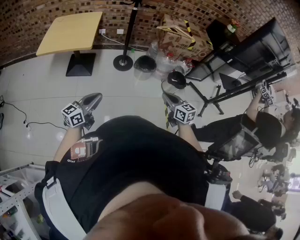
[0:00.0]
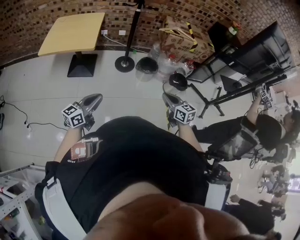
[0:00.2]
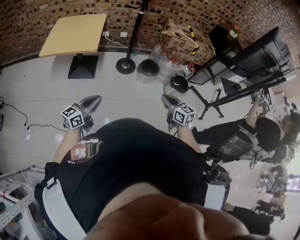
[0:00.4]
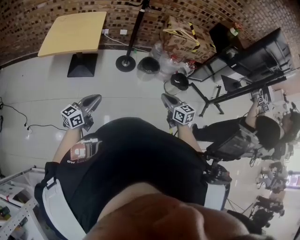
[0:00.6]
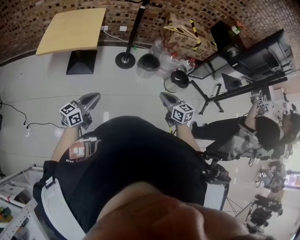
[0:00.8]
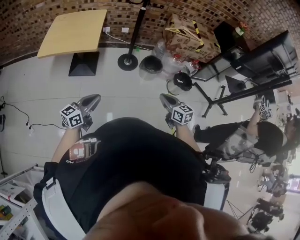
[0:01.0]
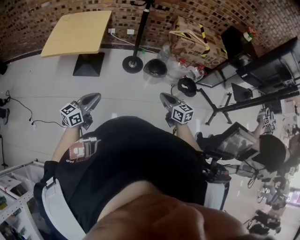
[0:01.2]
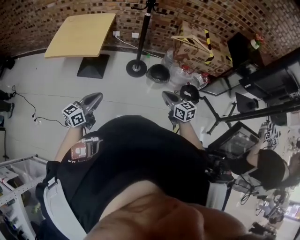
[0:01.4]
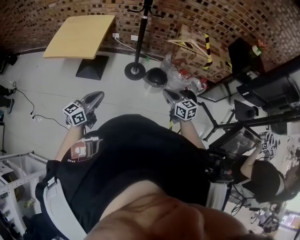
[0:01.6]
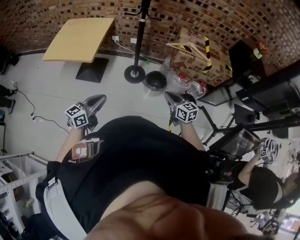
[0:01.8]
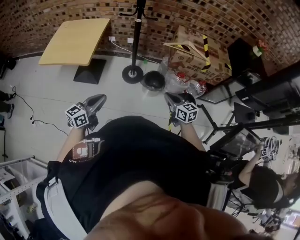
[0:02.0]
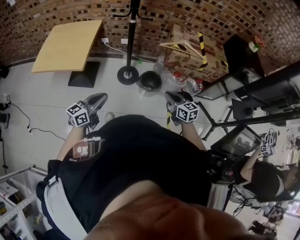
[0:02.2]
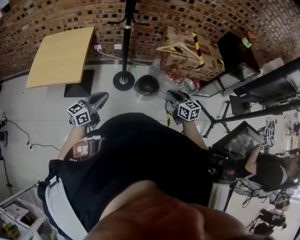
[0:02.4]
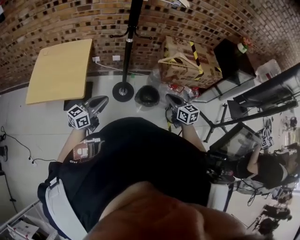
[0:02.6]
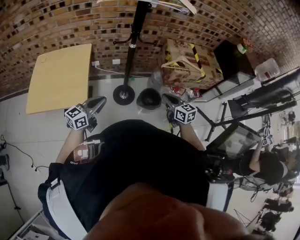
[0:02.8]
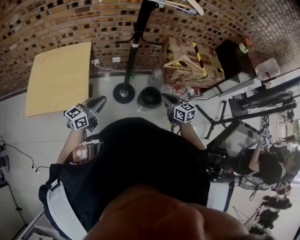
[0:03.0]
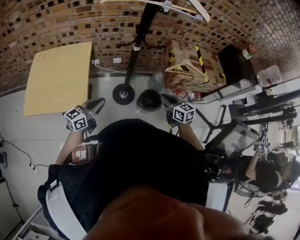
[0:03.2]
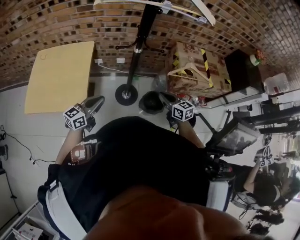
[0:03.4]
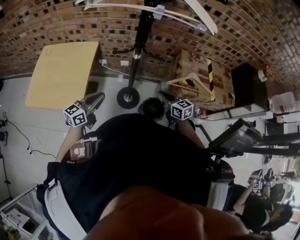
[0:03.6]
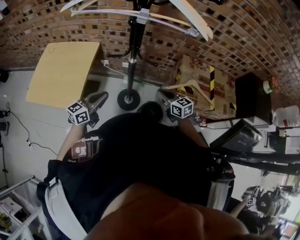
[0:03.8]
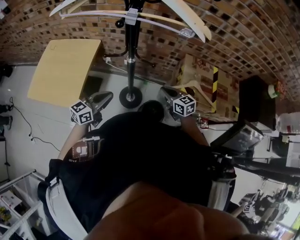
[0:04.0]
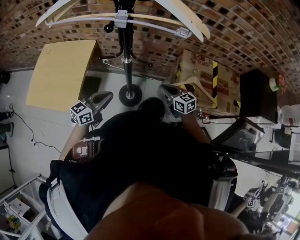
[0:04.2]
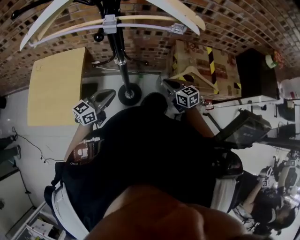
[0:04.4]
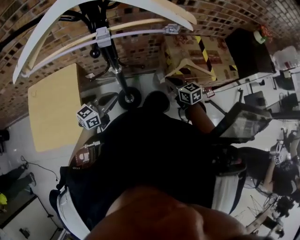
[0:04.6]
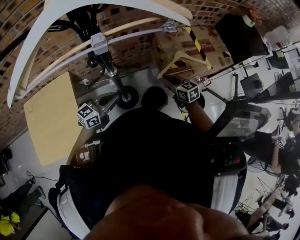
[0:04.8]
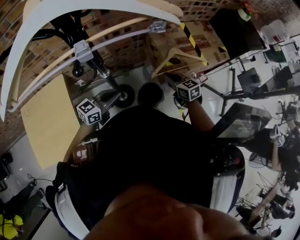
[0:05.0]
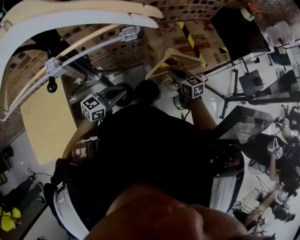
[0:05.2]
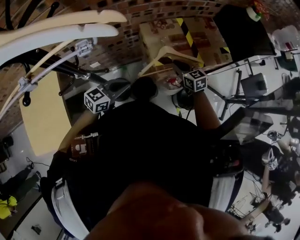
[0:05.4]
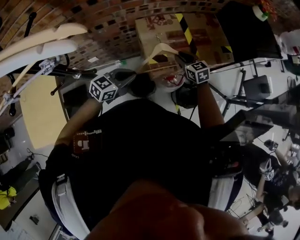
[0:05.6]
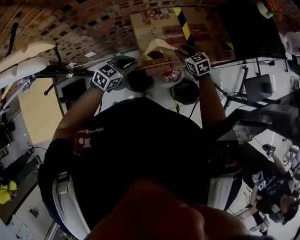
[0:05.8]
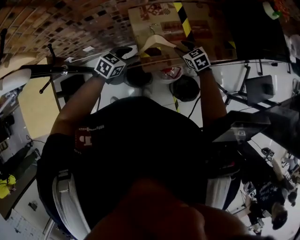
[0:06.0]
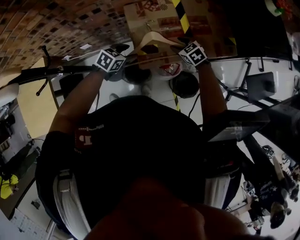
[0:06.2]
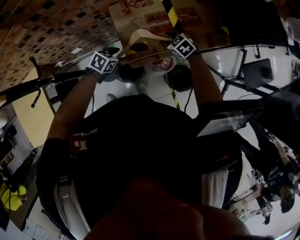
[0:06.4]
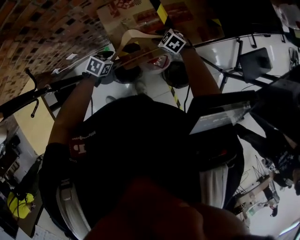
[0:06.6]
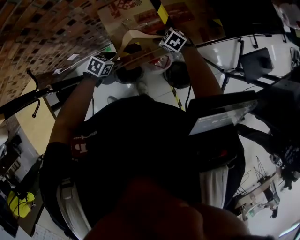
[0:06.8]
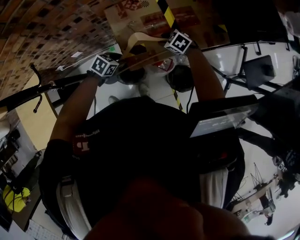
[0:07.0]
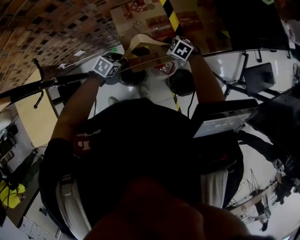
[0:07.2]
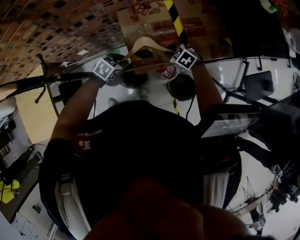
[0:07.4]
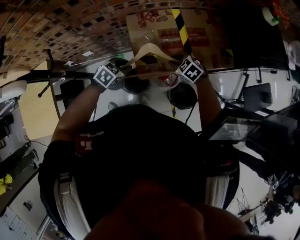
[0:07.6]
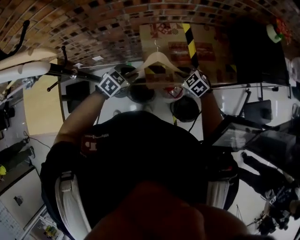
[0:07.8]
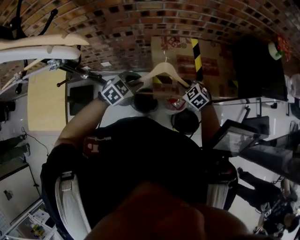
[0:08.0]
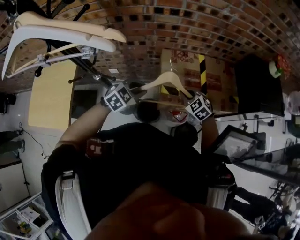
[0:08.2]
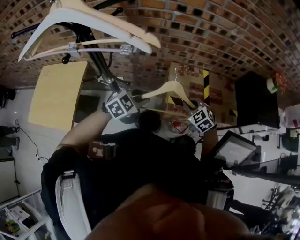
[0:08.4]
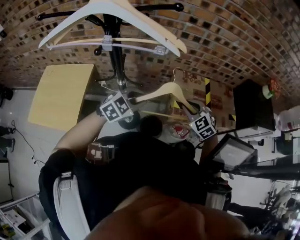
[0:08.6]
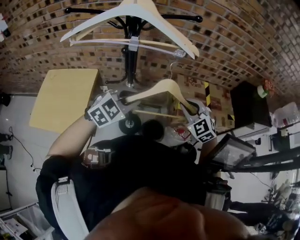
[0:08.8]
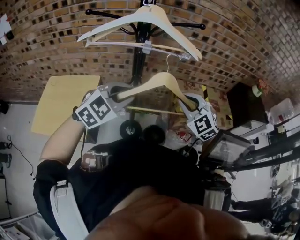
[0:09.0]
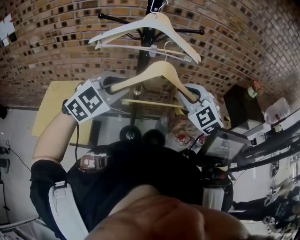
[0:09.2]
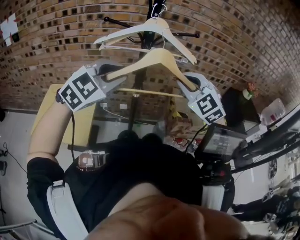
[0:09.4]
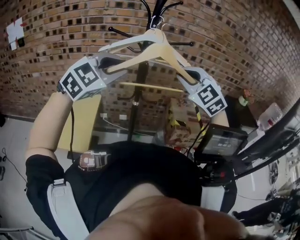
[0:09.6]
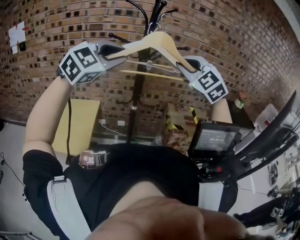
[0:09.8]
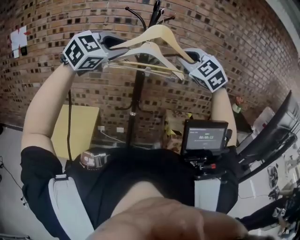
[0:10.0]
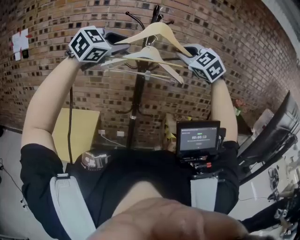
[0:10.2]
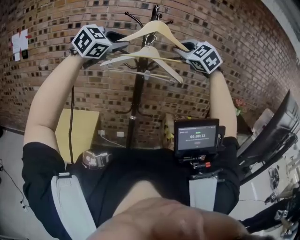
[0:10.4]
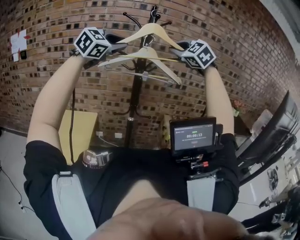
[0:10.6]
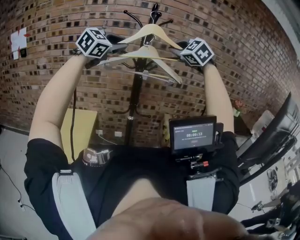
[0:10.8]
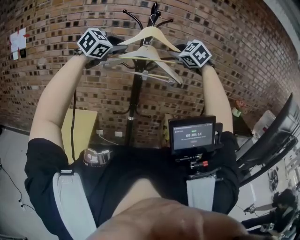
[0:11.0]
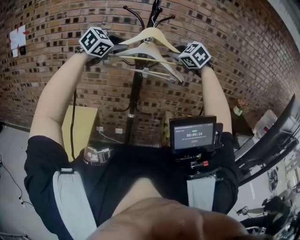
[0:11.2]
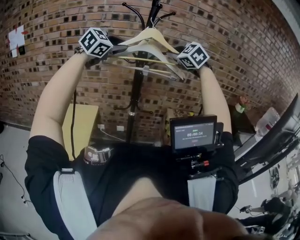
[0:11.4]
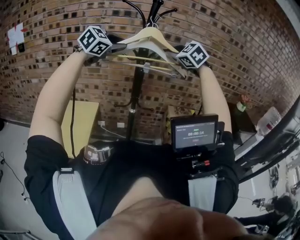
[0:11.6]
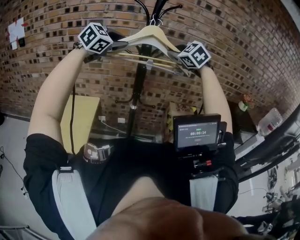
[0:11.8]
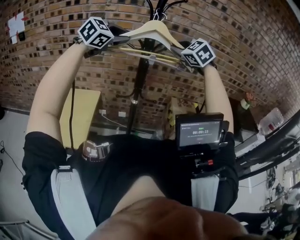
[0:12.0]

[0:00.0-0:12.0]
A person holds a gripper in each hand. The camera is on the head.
0:00.0 to 0:01.6: The left gripper travels forward and to the right by roughly 20 cm; the right gripper moves forward, some 25 cm.
0:01.6 to 0:03.0: The left gripper heads forward, covering about 35 cm, while the right gripper goes about 25 cm forward and to the left.
0:03.0 to 0:04.4: The left gripper goes some 25 cm forward and to the right; the right gripper moves forward, roughly 25 cm.
0:04.4 to 0:06.0: The left gripper moves about 40 cm, tips its fingers downward by approximately 30 degrees, and opens its fingers. Meanwhile the right gripper shifts by approximately 35 cm, turns by approximately 20 degrees, and opens.
0:06.0 to 0:07.6: The right gripper rotates some 20 degrees, and closes its fingers; the left gripper moves some 10 cm downward and comes back, and opens and closes again.
0:07.6 to 0:09.0: The grippers both shift upward, to the left and backward by some 50 cm. The left gripper tips its fingers upward by some 30 degrees. Meanwhile the right gripper tilts its fingers approximately 30 degrees upward.
0:09.0 to 0:10.4: Both grippers move upward, about 30 cm. The left gripper changes its angle by about 20 degrees.
0:10.4 to 0:12.0: Both grippers travel together forward and downward, about 15 cm.

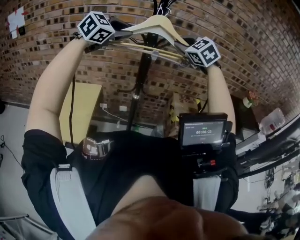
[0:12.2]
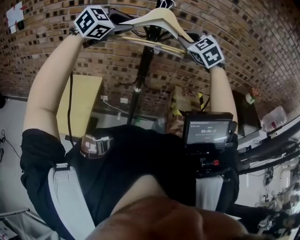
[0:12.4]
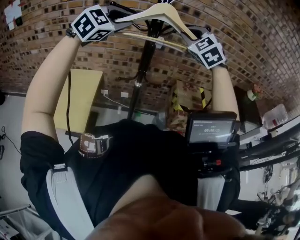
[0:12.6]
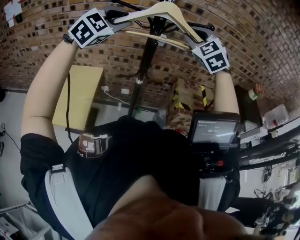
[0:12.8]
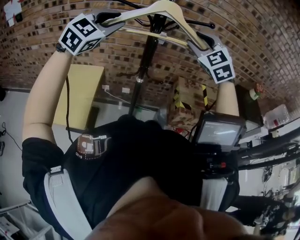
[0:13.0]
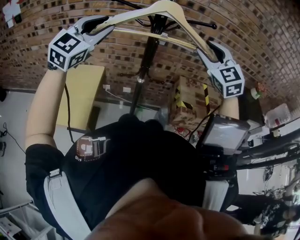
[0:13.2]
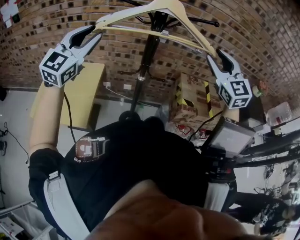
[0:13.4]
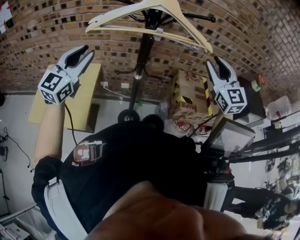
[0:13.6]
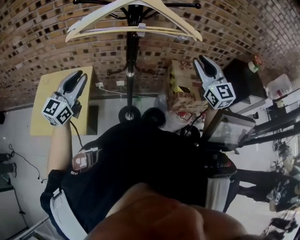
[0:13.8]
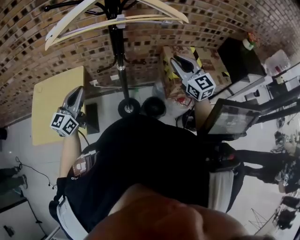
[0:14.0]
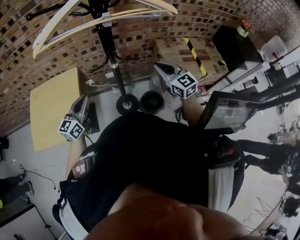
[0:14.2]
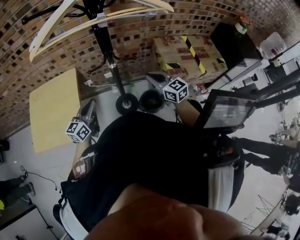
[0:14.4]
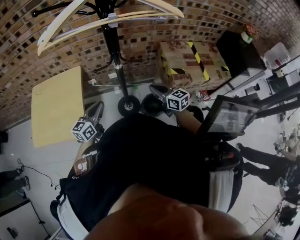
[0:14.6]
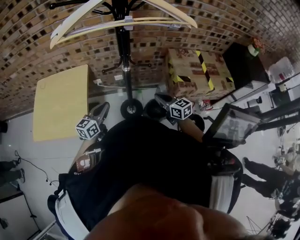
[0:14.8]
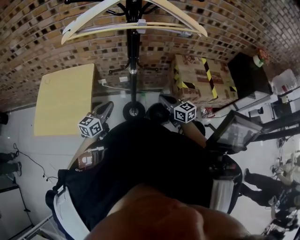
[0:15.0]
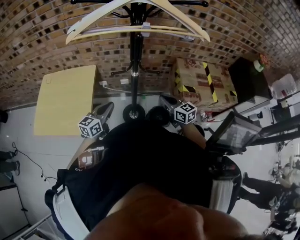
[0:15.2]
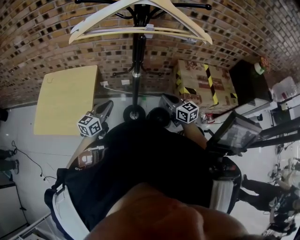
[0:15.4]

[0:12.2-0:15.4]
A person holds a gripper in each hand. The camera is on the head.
0:12.2 to 0:13.8: The right gripper moves to the right, downward and backward, roughly 20 cm, and swivels about 40 degrees. Meanwhile the left gripper travels downward, backward and to the left by approximately 25 cm, and rotates about 40 degrees.
0:13.8 to 0:15.4: The grippers both shift downward by roughly 25 cm. The left gripper turns by some 20 degrees, and closes its fingers. Meanwhile the right gripper turns by roughly 40 degrees, and closes its fingers.

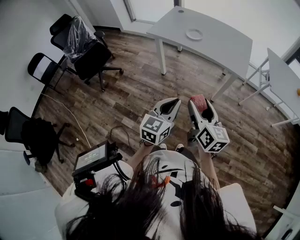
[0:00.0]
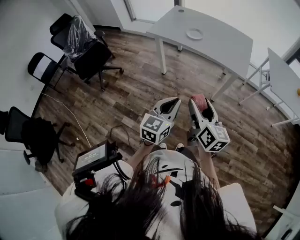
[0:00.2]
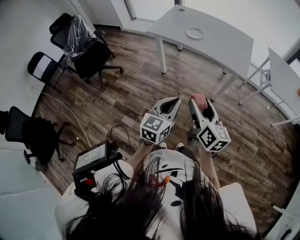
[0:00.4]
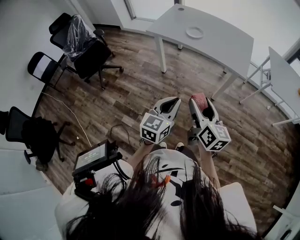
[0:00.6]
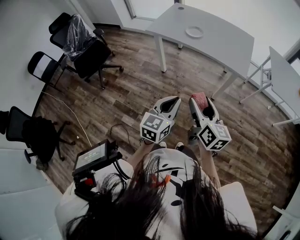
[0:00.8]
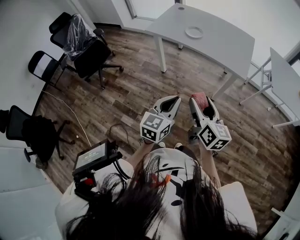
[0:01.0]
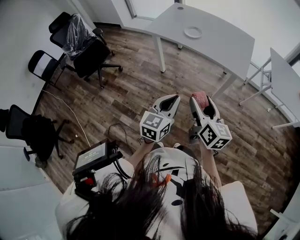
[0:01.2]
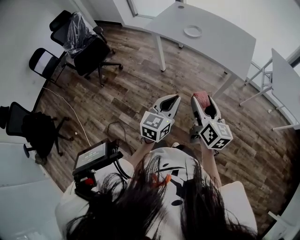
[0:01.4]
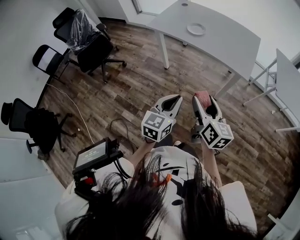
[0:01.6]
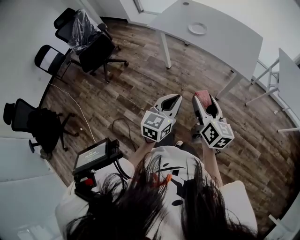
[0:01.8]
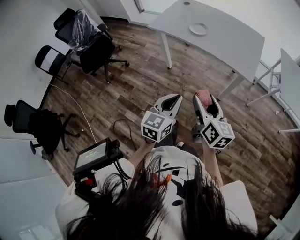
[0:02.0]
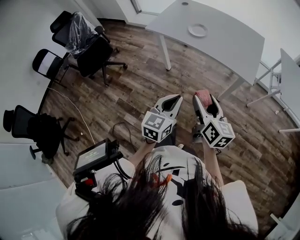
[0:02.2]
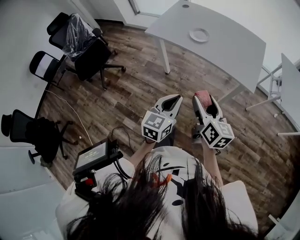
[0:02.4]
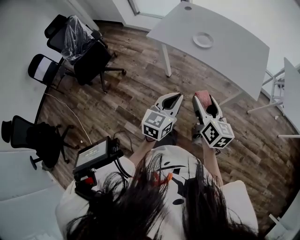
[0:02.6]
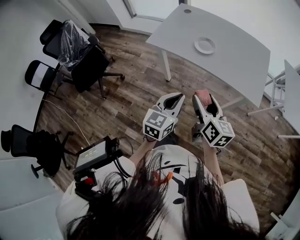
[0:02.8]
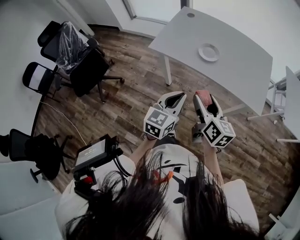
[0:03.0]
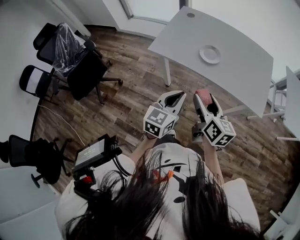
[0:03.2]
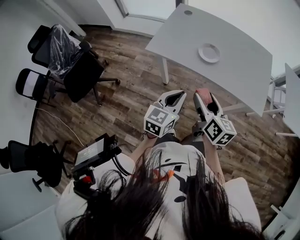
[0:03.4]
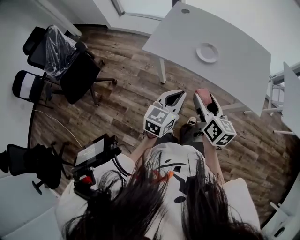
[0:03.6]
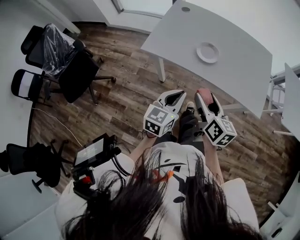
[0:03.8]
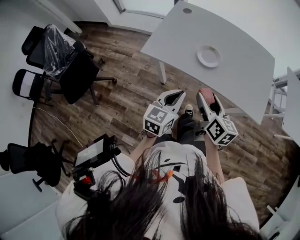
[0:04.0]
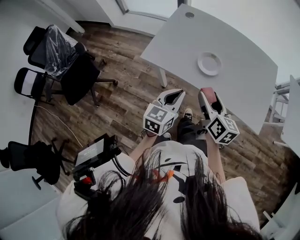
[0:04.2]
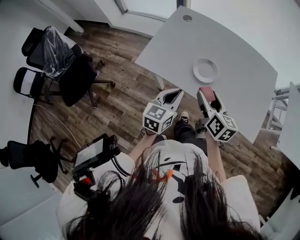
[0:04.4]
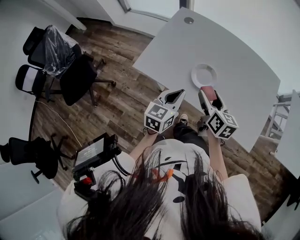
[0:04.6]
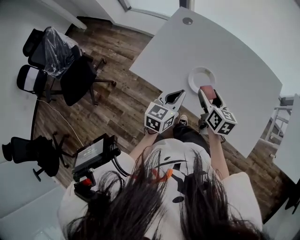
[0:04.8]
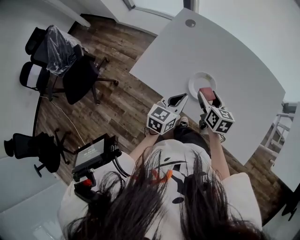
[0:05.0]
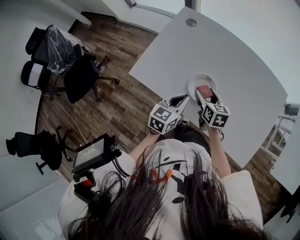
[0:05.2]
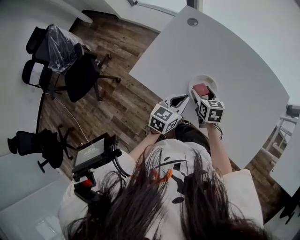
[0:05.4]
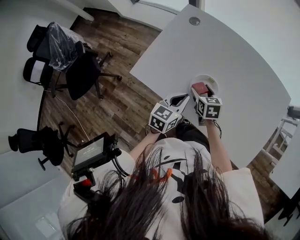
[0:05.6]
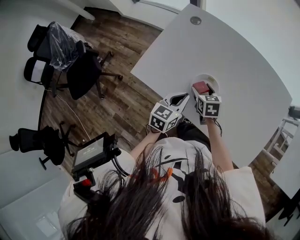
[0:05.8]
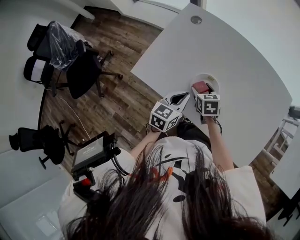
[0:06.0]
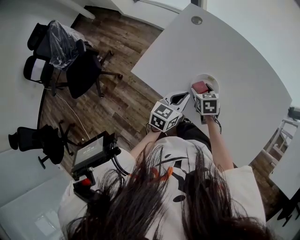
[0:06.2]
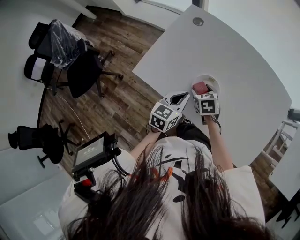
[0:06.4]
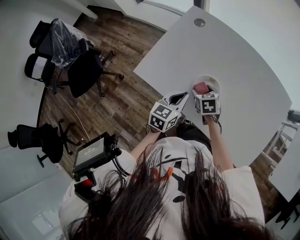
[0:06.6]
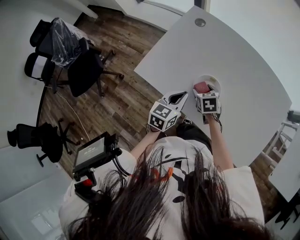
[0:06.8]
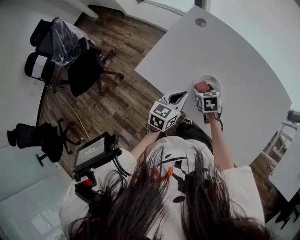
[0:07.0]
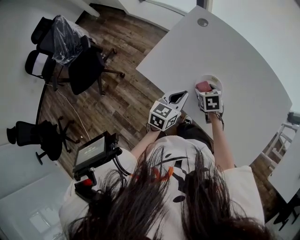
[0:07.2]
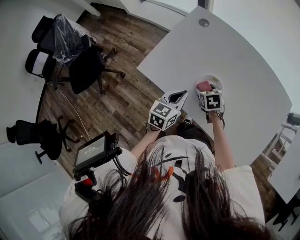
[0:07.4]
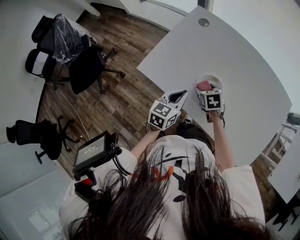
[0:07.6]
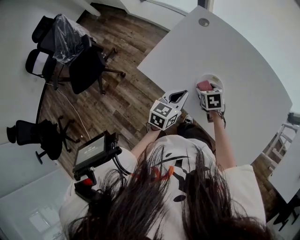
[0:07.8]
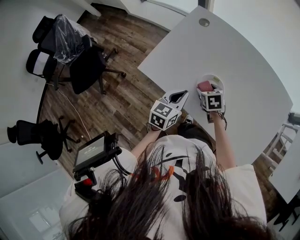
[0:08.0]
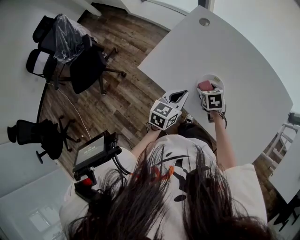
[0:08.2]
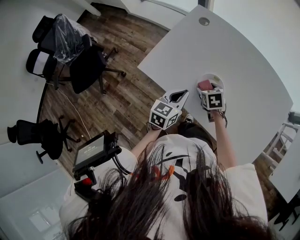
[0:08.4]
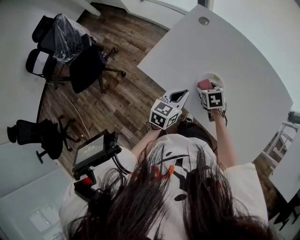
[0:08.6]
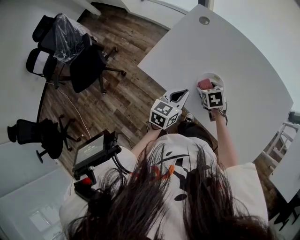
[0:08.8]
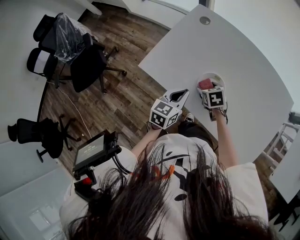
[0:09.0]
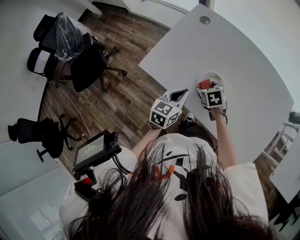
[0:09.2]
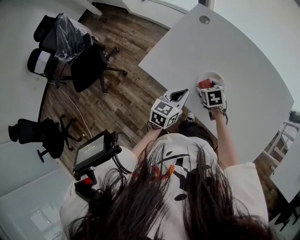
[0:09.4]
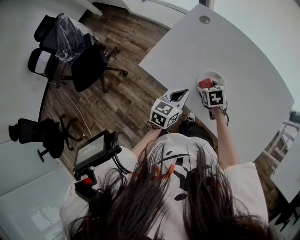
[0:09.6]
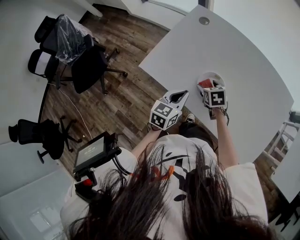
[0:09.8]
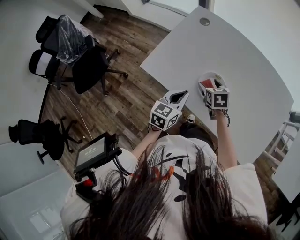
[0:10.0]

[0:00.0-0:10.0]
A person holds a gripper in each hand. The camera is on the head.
0:00.0 to 0:01.4: The left gripper is displaced forward by about 5 cm; the right gripper goes roughly 10 cm forward and to the right.
0:01.4 to 0:02.8: The grippers both shift forward and to the left by roughly 20 cm.
0:02.8 to 0:04.2: Both grippers travel together forward, about 20 cm.
0:04.2 to 0:05.8: The grippers both shift forward and downward by about 25 cm. The right gripper changes its angle by some 40 degrees.
0:05.8 to 0:07.2: The grippers make only small movements.
0:07.2 to 0:08.6: The two grippers keep their place.
0:08.6 to 0:10.0: The grippers move only a little.
